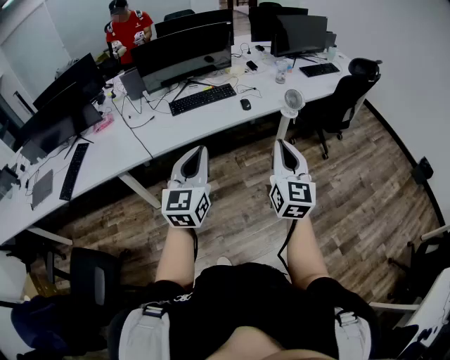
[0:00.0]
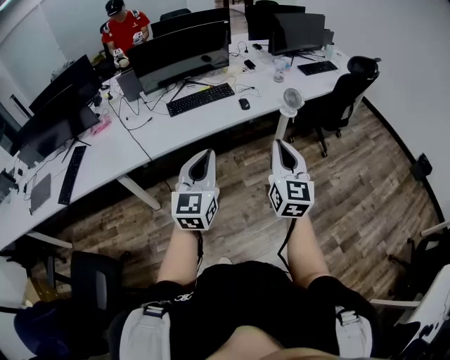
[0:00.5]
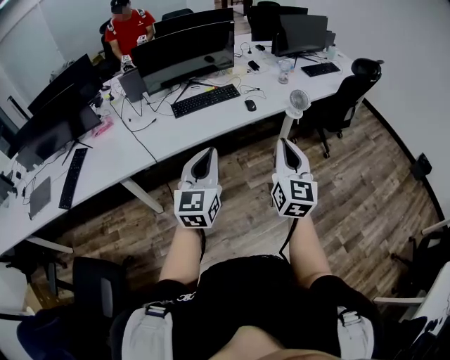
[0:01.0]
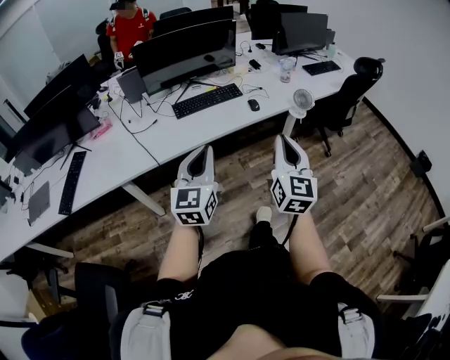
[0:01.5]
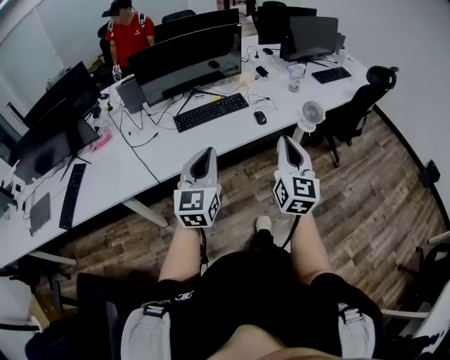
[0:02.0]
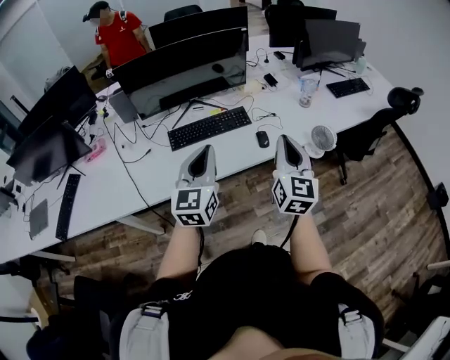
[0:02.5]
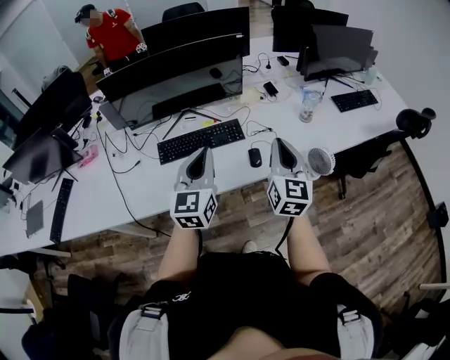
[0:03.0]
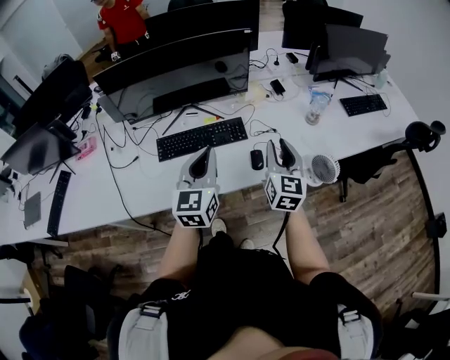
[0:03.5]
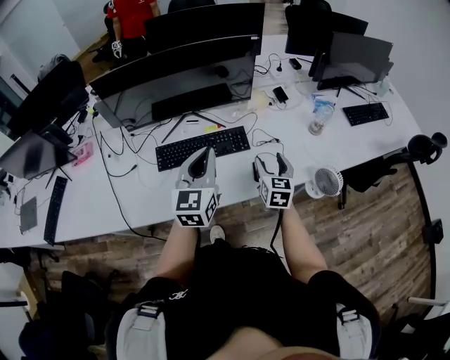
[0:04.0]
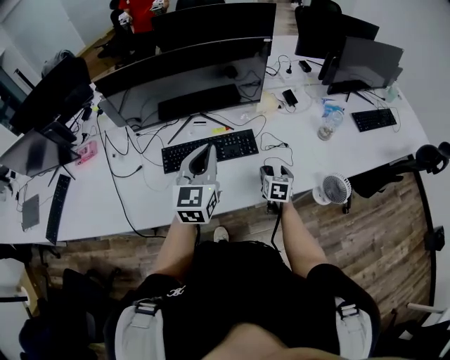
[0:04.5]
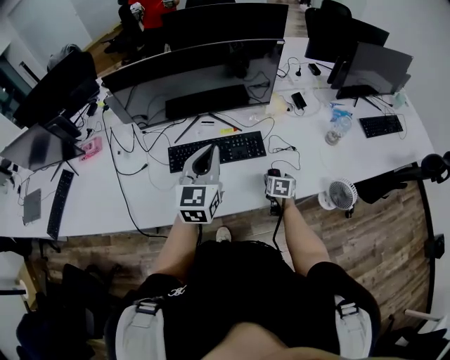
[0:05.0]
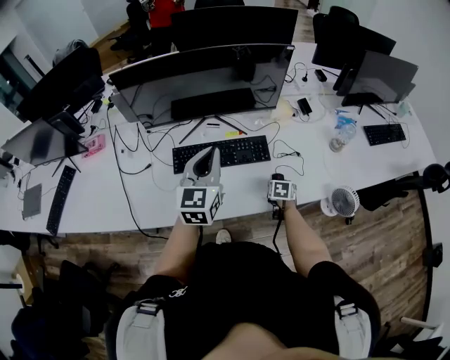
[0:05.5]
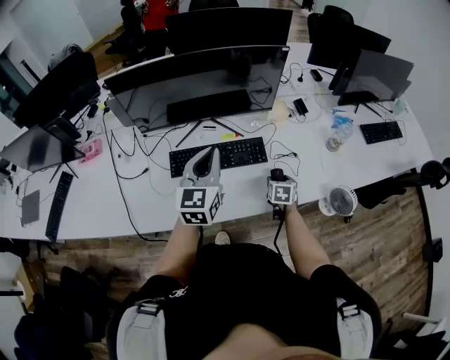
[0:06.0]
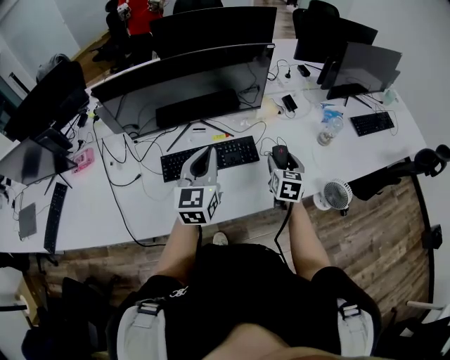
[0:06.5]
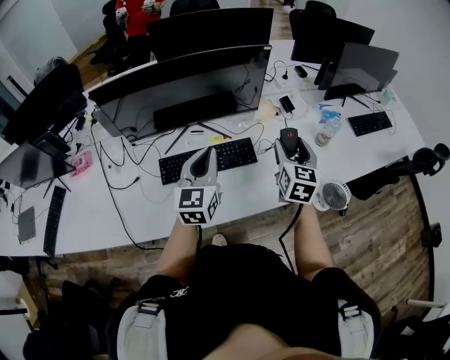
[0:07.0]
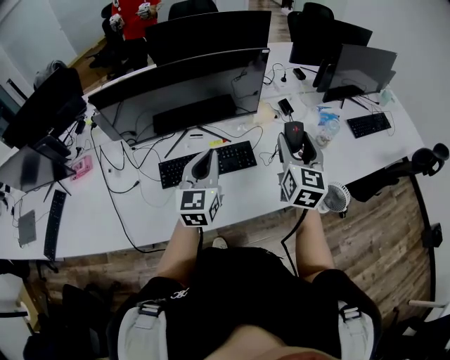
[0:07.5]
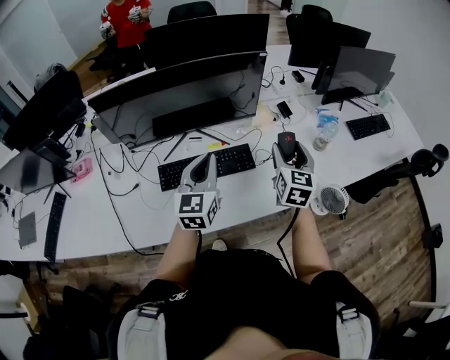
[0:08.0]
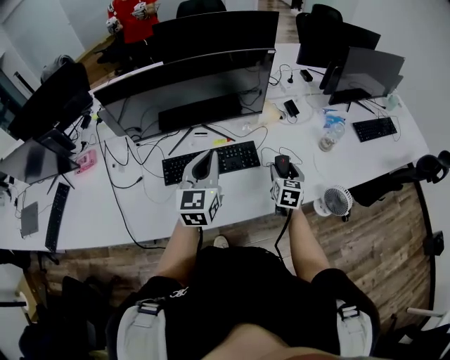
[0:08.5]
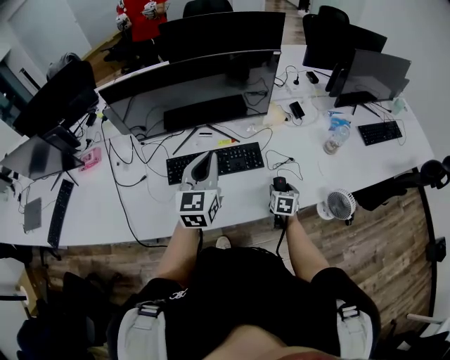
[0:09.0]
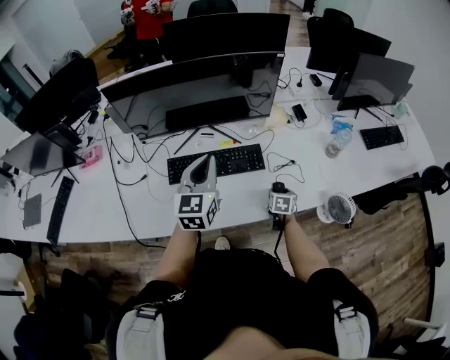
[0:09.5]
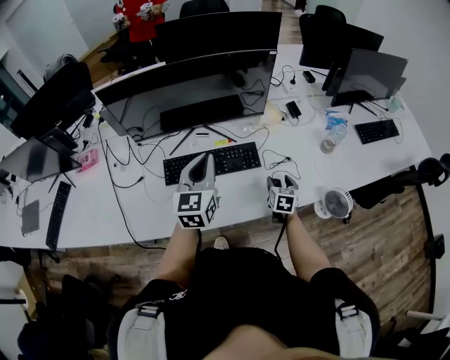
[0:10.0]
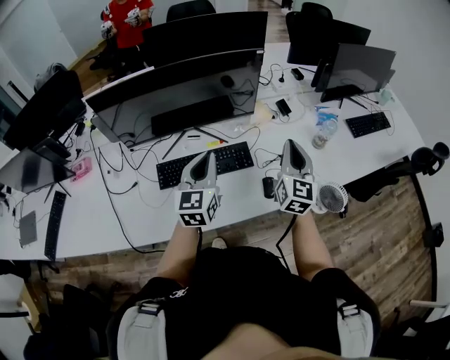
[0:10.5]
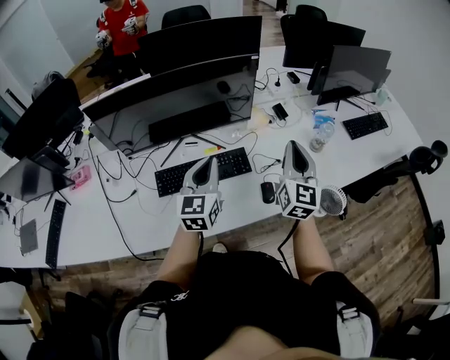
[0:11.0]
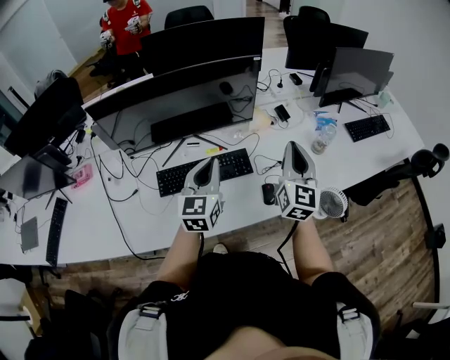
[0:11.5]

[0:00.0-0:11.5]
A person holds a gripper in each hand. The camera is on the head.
0:00.0 to 0:02.0: The two grippers go roughly 15 cm forward and to the left.
0:02.0 to 0:04.0: The left gripper heads forward, covering roughly 35 cm. Meanwhile the right gripper heads forward and downward, covering about 50 cm, swivels about 30 degrees, and opens.
0:04.0 to 0:06.0: The left gripper heads to the left, covering about 5 cm. Meanwhile the right gripper moves downward, about 15 cm, and changes its angle by about 30 degrees.
0:06.0 to 0:07.5: The right gripper travels upward by about 35 cm, and tilts its fingers about 40 degrees upward.
0:07.5 to 0:09.5: The right gripper goes roughly 40 cm downward, and angles its fingers downward, by some 50 degrees.
0:09.5 to 0:11.5: The right gripper goes about 40 cm upward, points its fingers some 60 degrees further upward, and closes. Meanwhile the left gripper is displaced to the right by about 5 cm.

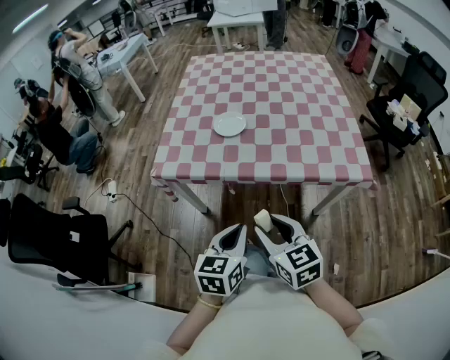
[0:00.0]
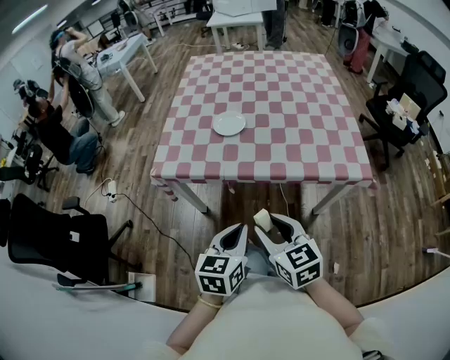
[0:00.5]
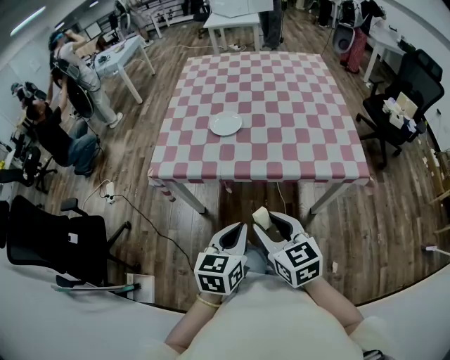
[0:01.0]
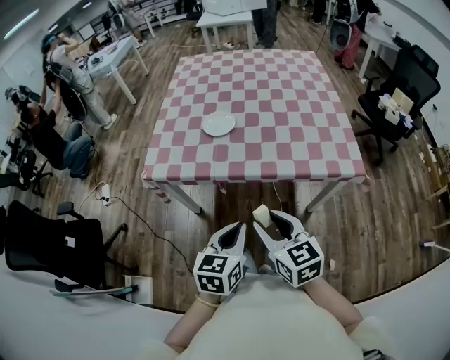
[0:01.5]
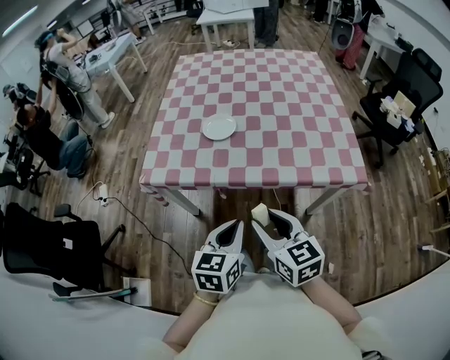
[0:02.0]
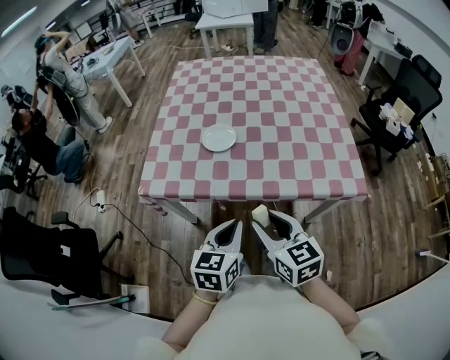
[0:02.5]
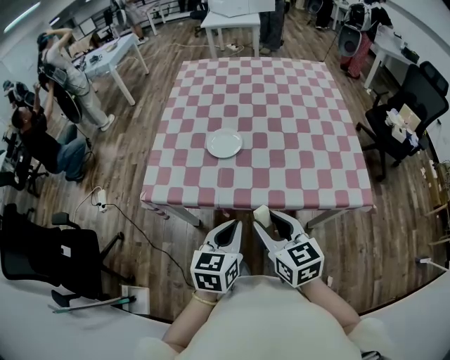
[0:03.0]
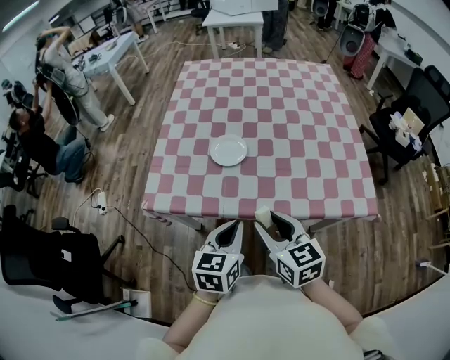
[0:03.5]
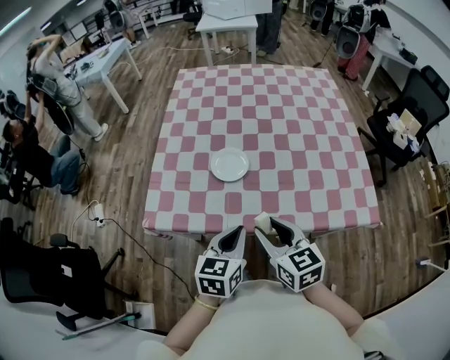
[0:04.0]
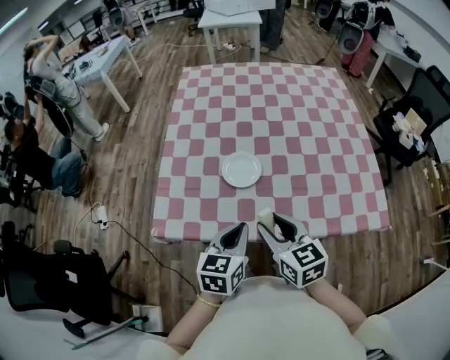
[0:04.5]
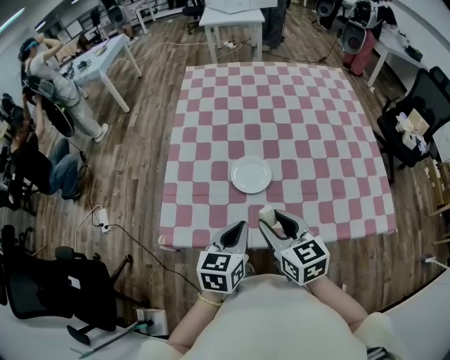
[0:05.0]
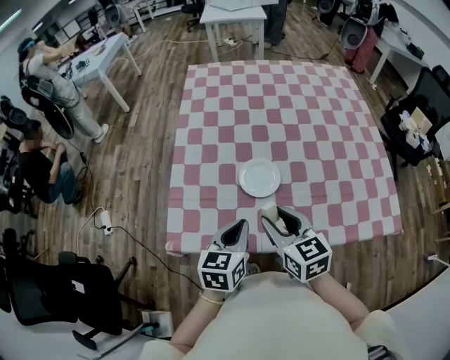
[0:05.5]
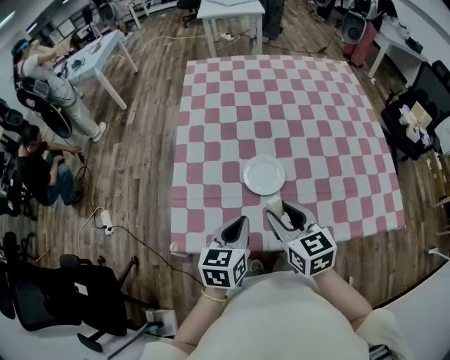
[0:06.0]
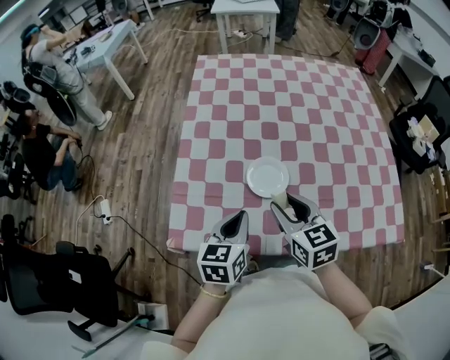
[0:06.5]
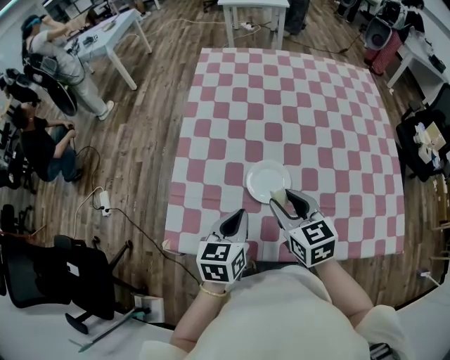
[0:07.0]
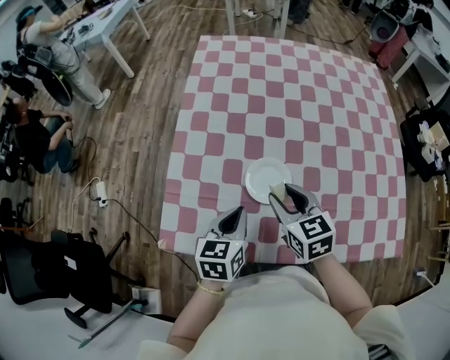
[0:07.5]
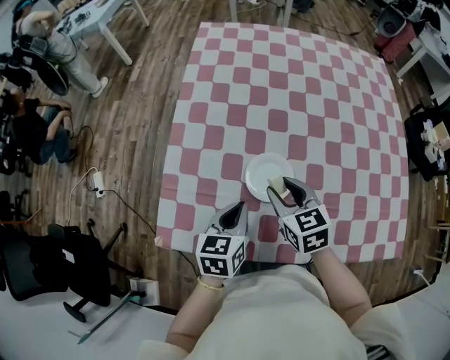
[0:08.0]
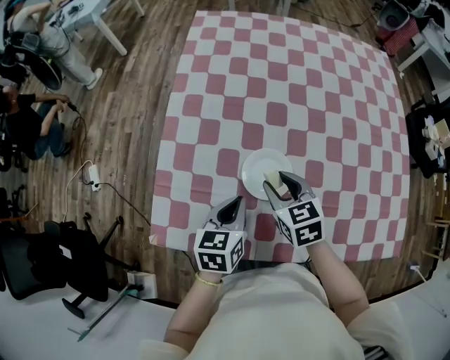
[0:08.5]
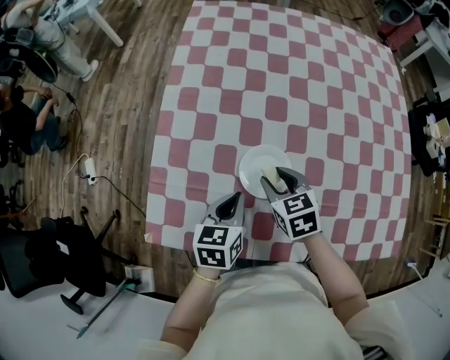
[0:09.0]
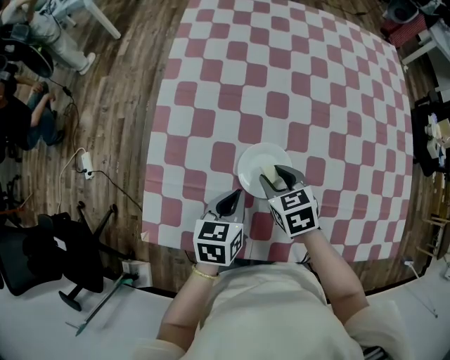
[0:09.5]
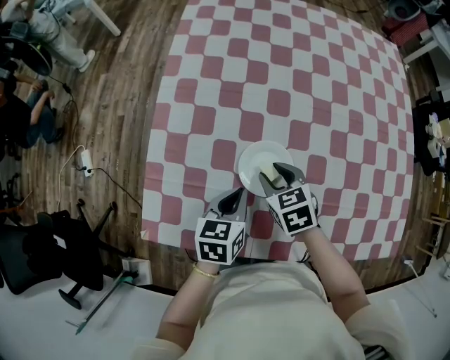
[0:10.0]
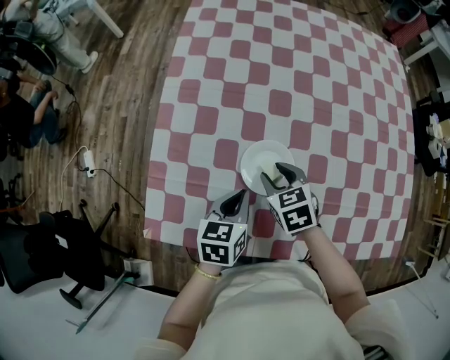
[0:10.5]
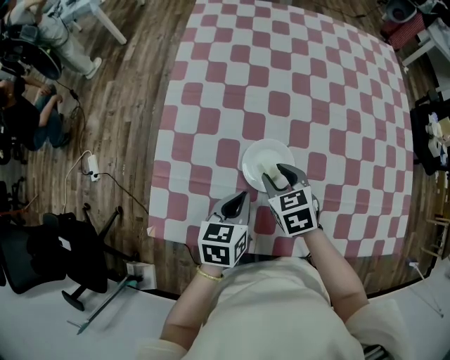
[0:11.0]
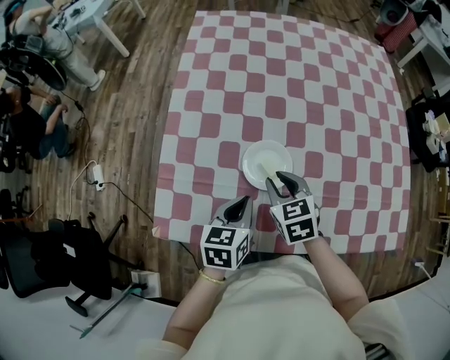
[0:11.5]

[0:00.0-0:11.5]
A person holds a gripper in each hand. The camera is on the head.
0:00.0 to 0:02.0: The grippers stay close to where they were, moving slightly.
0:02.0 to 0:04.0: Both grippers move forward, about 20 cm.
0:04.0 to 0:06.0: The grippers both shift forward and to the left by approximately 20 cm.
0:06.0 to 0:07.5: The two grippers go approximately 10 cm forward.
0:07.5 to 0:09.5: The left gripper heads downward, covering some 5 cm. Meanwhile the right gripper moves downward and forward, approximately 15 cm.
0:09.5 to 0:11.5: The left gripper moves about 5 cm. Meanwhile the right gripper is displaced upward by roughly 5 cm.

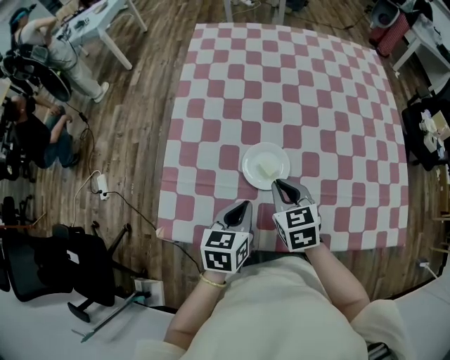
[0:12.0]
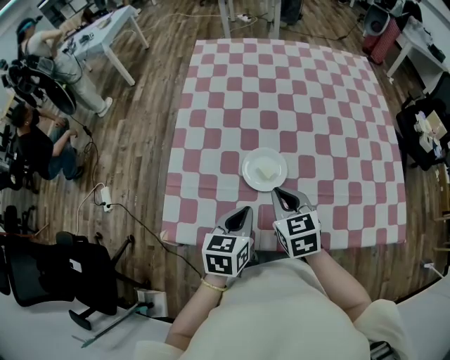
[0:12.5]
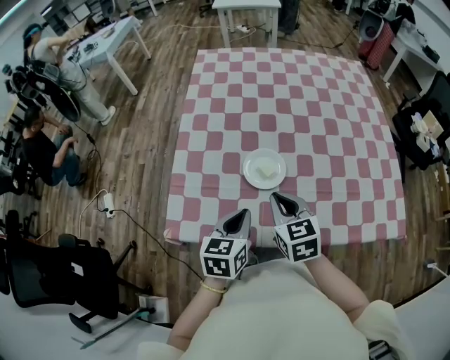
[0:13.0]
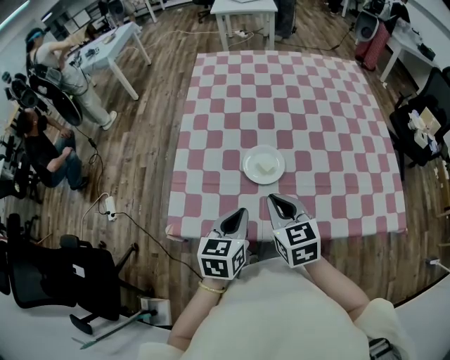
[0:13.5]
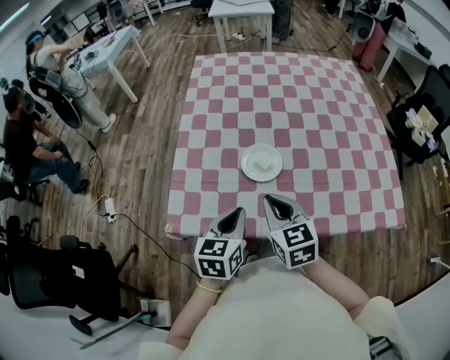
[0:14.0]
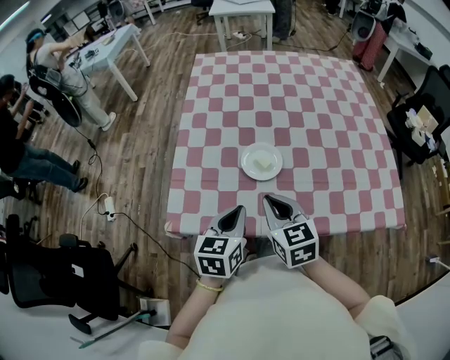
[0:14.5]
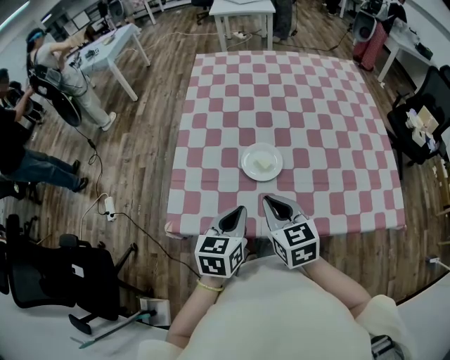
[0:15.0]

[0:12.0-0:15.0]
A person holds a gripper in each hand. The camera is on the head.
0:12.0 to 0:13.5: Both grippers move backward and upward, about 10 cm.
0:13.5 to 0:15.0: The grippers stay close to where they were, moving slightly.

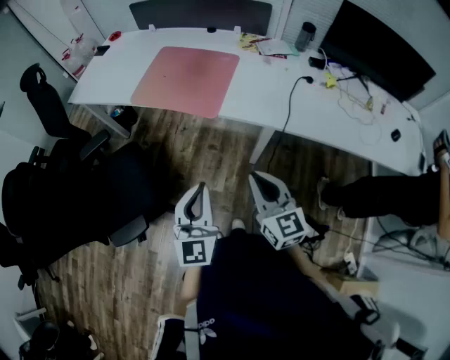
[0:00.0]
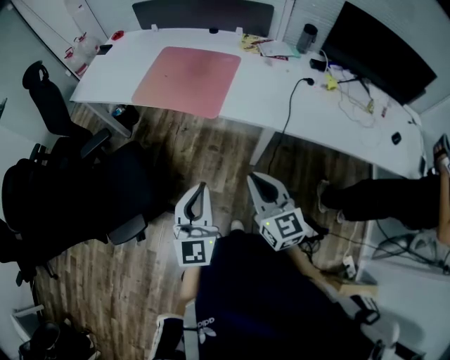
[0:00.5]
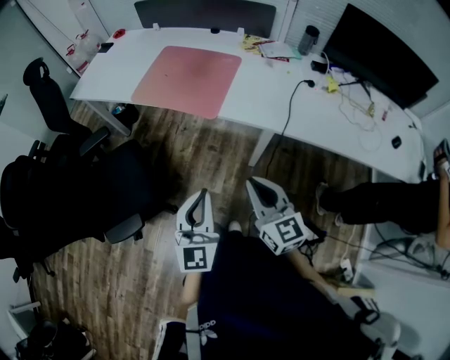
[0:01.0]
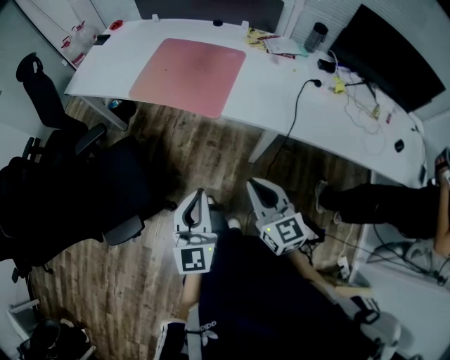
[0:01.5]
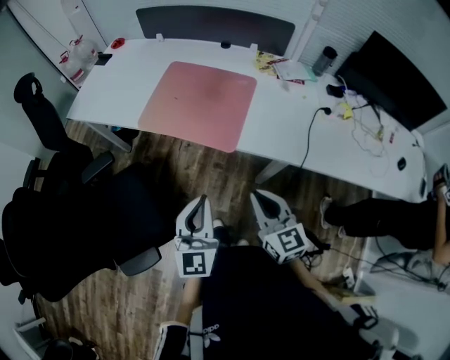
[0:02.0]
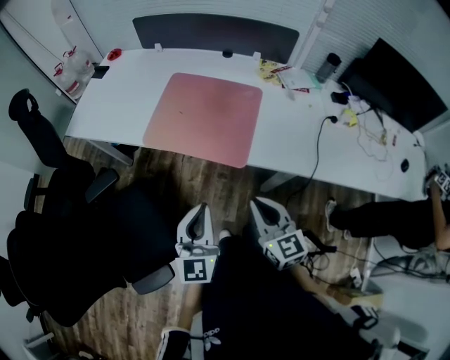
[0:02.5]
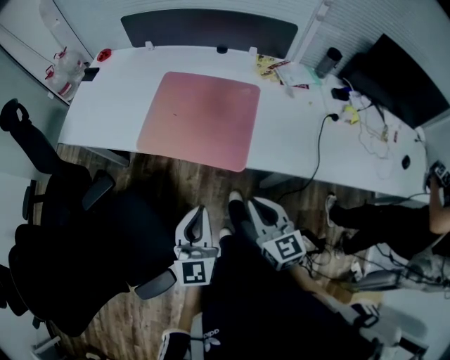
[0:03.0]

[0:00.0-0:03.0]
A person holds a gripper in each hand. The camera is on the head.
0:00.0 to 0:01.5: There are only small adjustments of the grippers.
0:01.5 to 0:03.0: The grippers both shift forward and to the left by roughly 20 cm.
